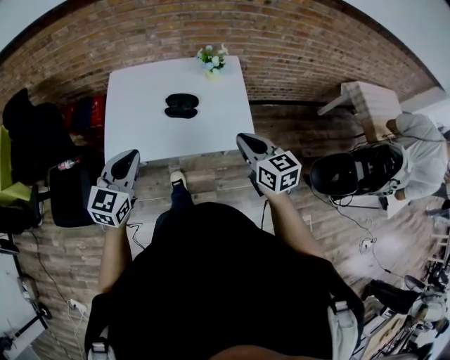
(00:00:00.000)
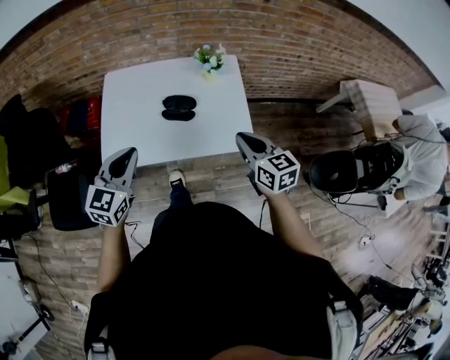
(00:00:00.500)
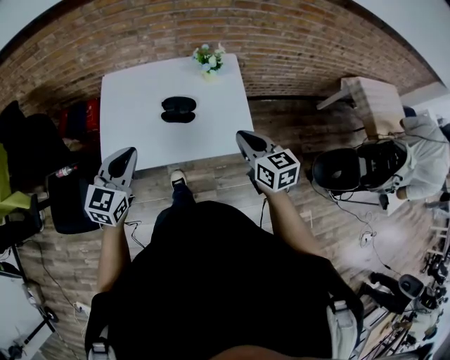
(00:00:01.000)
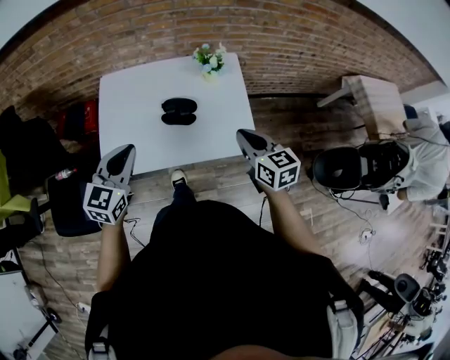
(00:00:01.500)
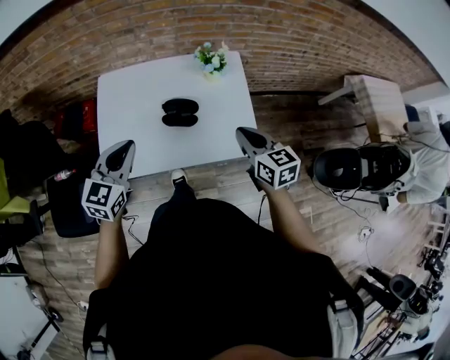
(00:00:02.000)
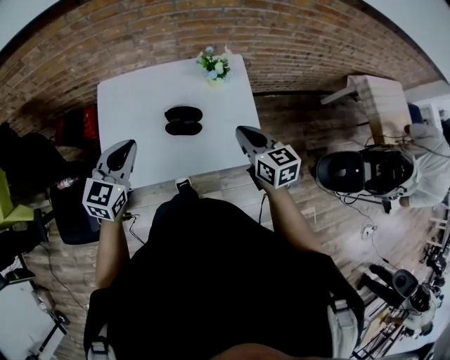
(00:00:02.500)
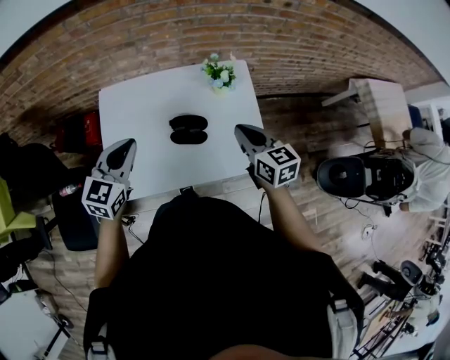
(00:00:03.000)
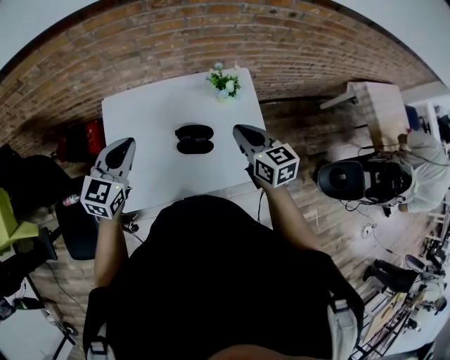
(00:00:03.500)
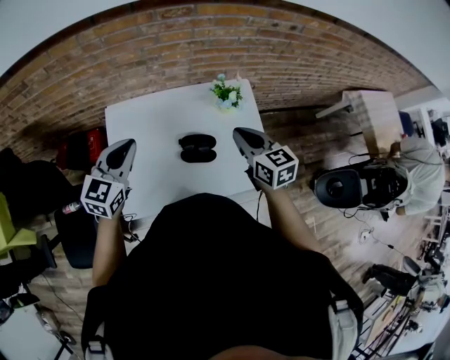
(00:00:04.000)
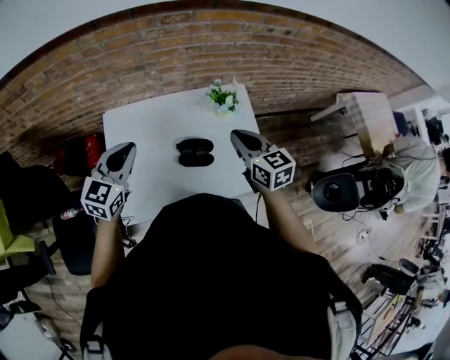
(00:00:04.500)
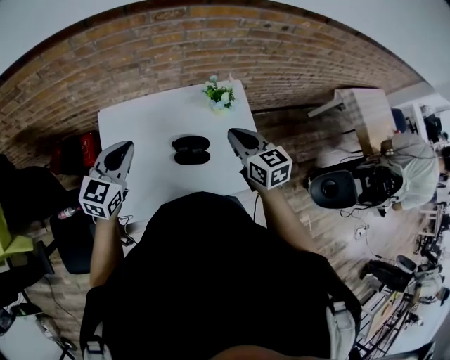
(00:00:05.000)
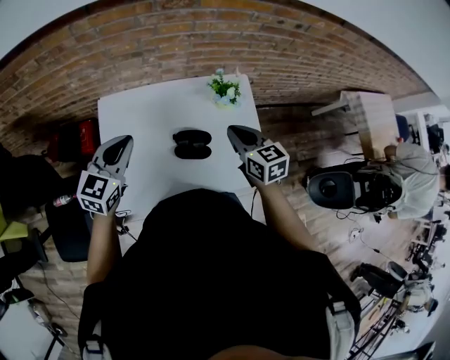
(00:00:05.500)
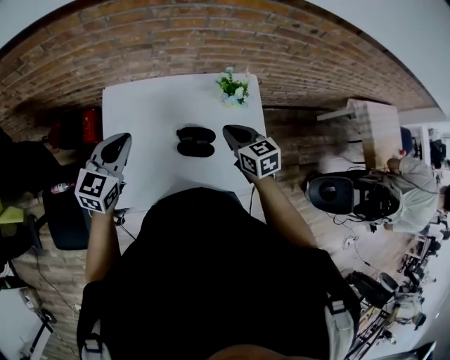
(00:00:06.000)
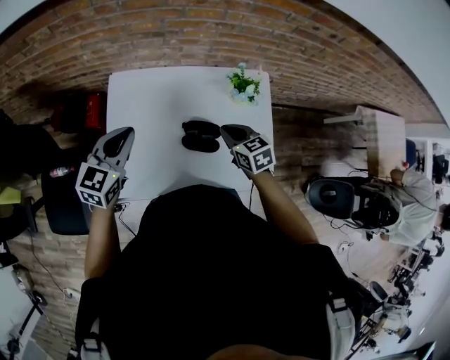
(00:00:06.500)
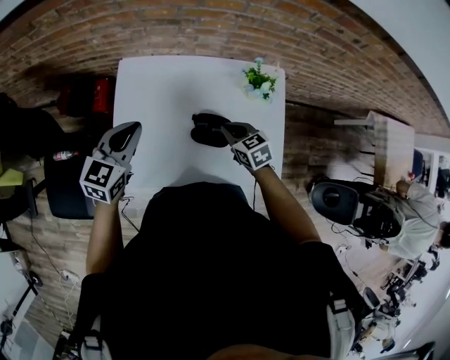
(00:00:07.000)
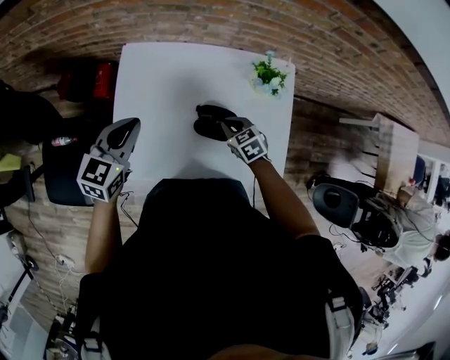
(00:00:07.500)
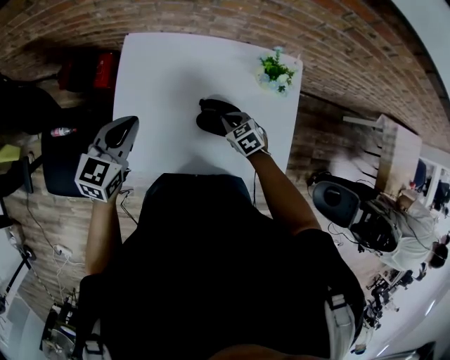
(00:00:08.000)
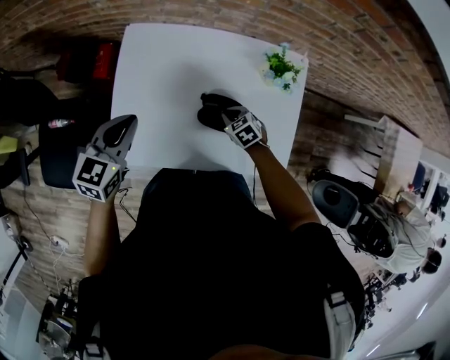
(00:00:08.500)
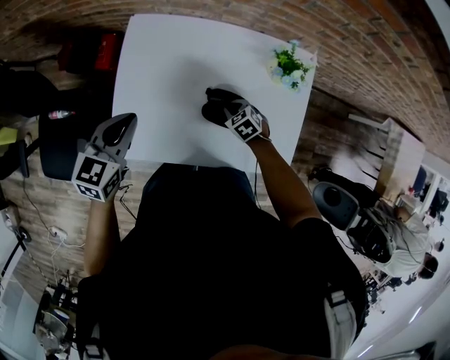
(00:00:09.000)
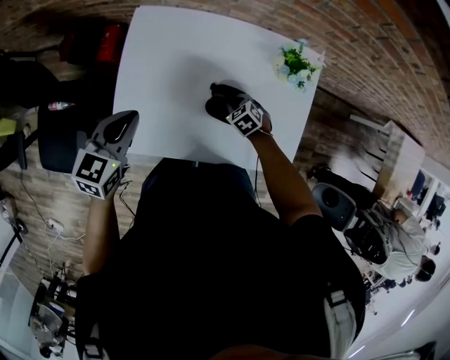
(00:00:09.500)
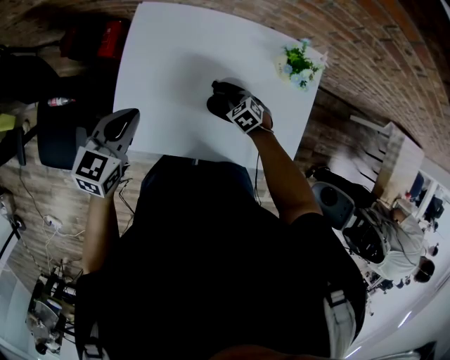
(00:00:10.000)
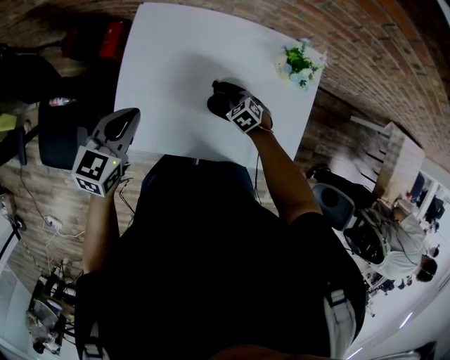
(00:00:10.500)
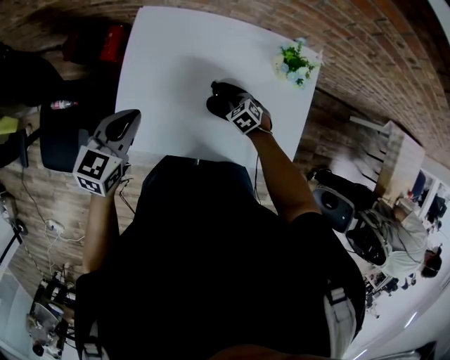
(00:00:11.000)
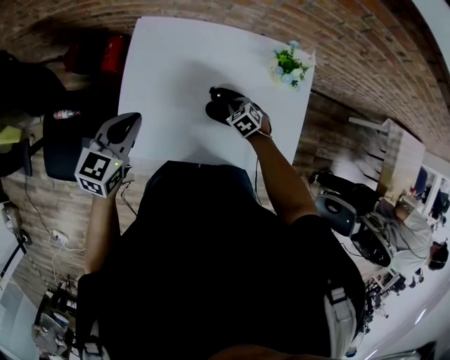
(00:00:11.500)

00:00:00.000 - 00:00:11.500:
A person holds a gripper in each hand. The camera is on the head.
00:00:00.000 - 00:00:02.000: The two grippers go roughly 10 cm forward.
00:00:02.000 - 00:00:04.000: Both grippers travel together forward and to the left, some 20 cm.
00:00:04.000 - 00:00:06.000: The right gripper goes some 10 cm downward.
00:00:06.000 - 00:00:07.500: The right gripper goes some 20 cm downward, and swivels some 30 degrees, while the left gripper travels downward by approximately 5 cm.
00:00:07.500 - 00:00:09.500: The right gripper heads downward, covering some 15 cm, and changes its angle by roughly 20 degrees, while the left gripper goes approximately 5 cm downward.
00:00:09.500 - 00:00:11.500: The grippers make only small movements.

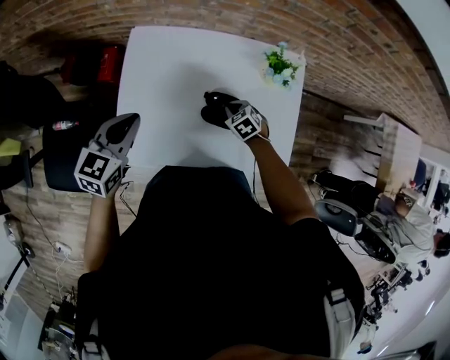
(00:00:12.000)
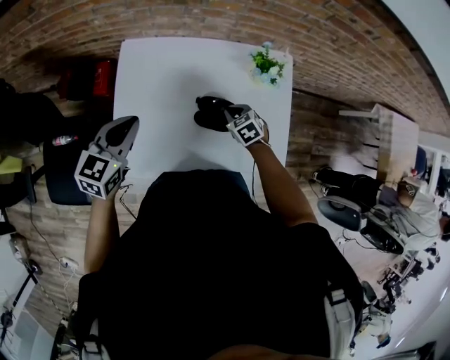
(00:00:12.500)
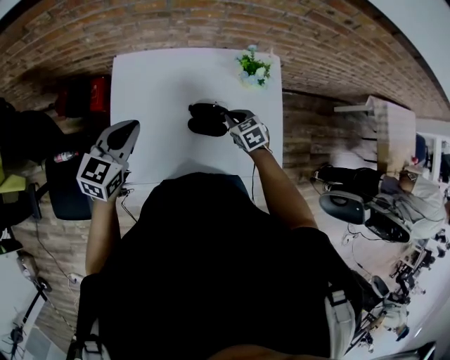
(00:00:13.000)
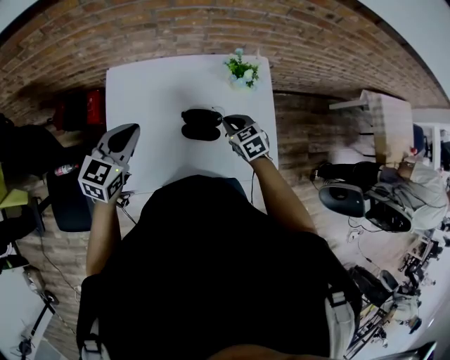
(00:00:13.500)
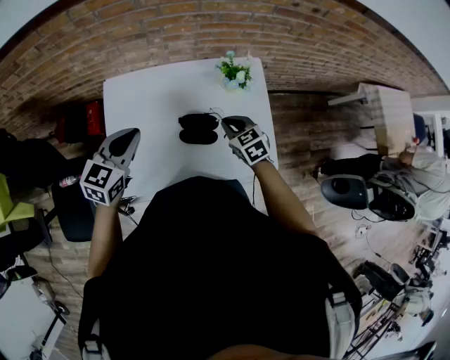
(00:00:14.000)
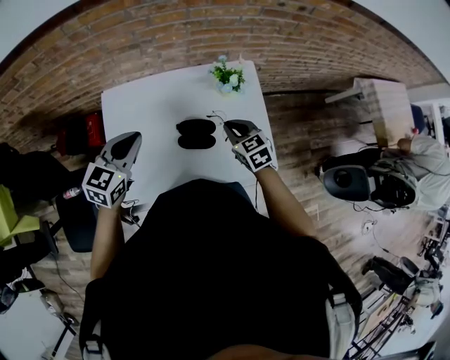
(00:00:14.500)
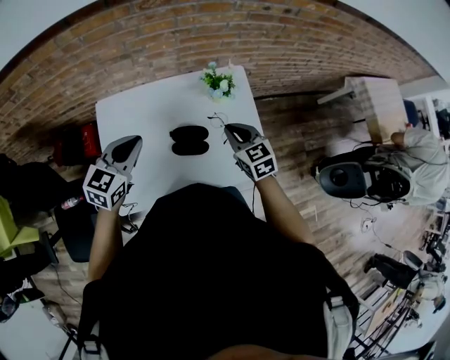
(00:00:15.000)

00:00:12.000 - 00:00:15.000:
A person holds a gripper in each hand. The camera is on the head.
00:00:12.000 - 00:00:13.500: The left gripper heads to the right, covering approximately 5 cm, while the right gripper moves upward, some 15 cm, and swivels roughly 20 degrees.
00:00:13.500 - 00:00:15.000: The left gripper travels to the right by approximately 5 cm. The right gripper travels upward by some 10 cm.

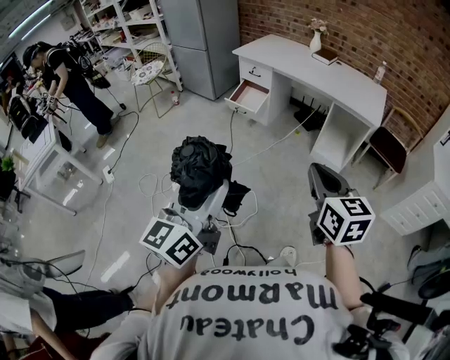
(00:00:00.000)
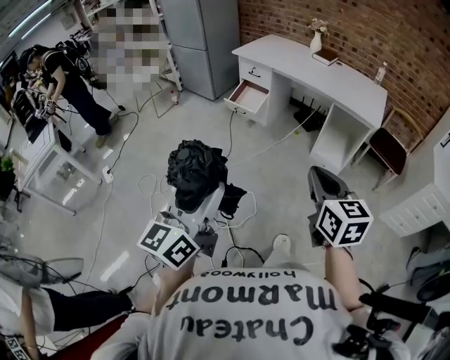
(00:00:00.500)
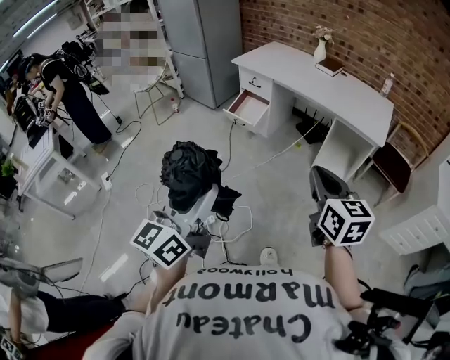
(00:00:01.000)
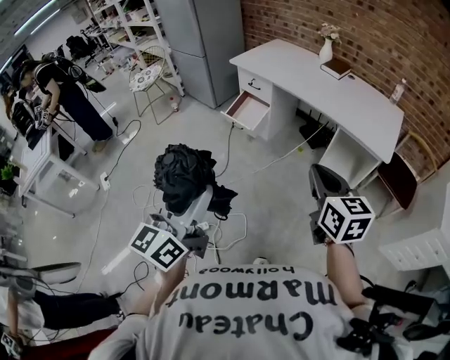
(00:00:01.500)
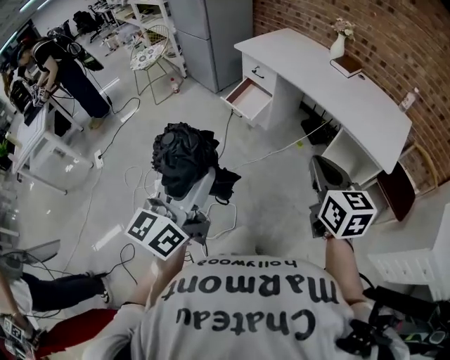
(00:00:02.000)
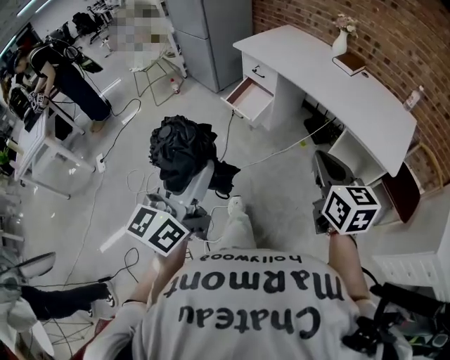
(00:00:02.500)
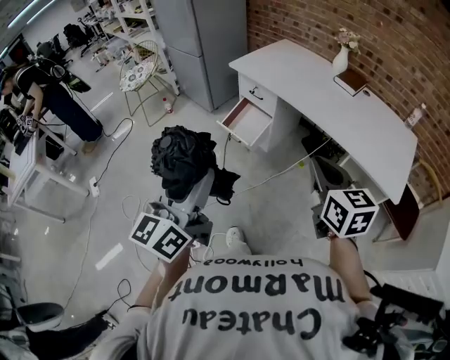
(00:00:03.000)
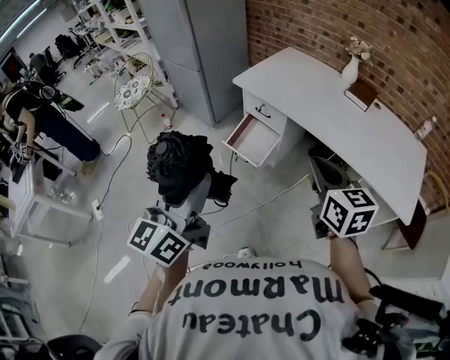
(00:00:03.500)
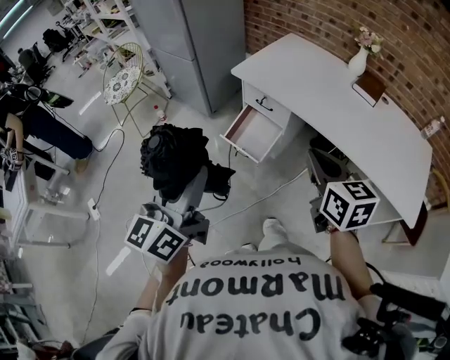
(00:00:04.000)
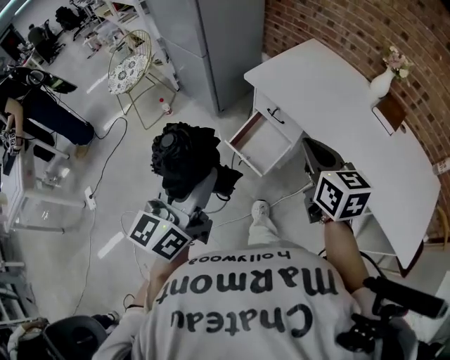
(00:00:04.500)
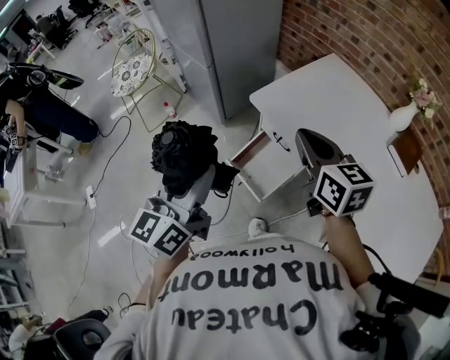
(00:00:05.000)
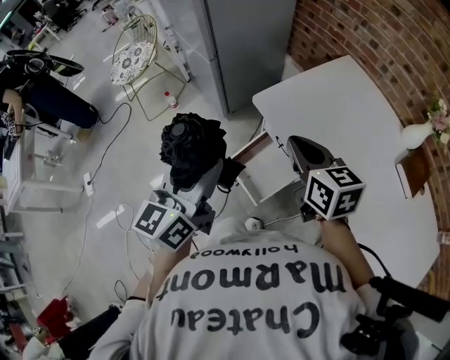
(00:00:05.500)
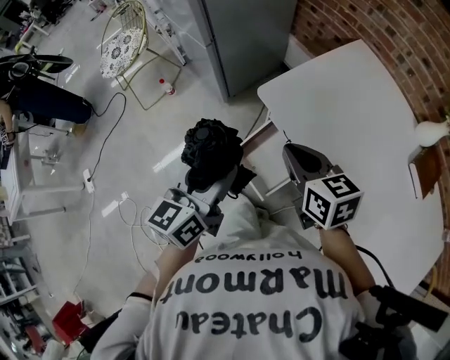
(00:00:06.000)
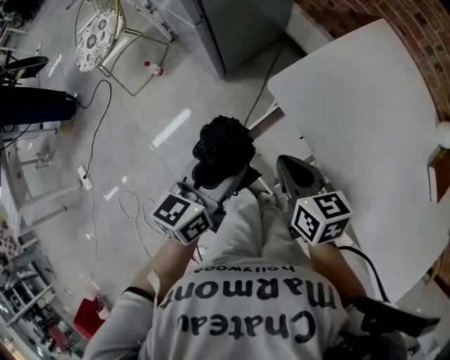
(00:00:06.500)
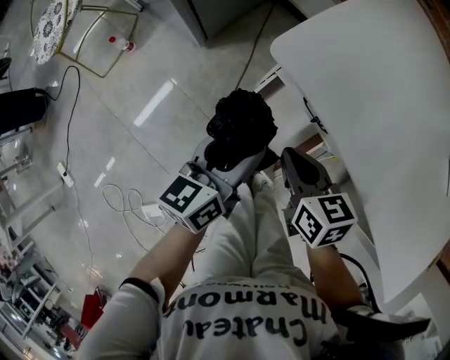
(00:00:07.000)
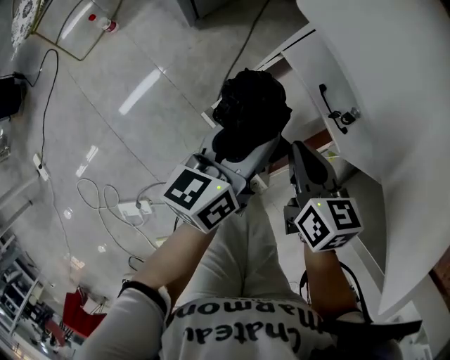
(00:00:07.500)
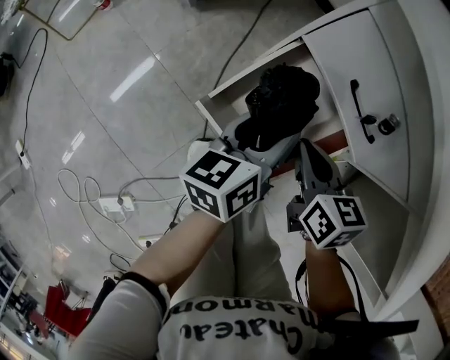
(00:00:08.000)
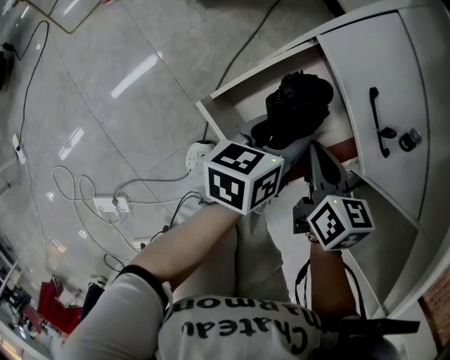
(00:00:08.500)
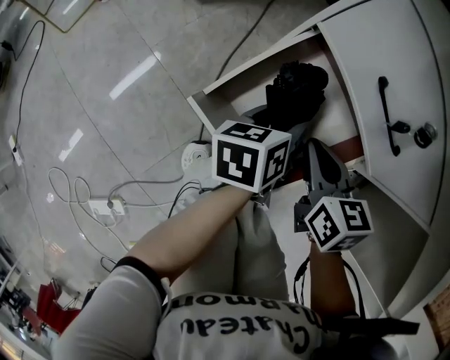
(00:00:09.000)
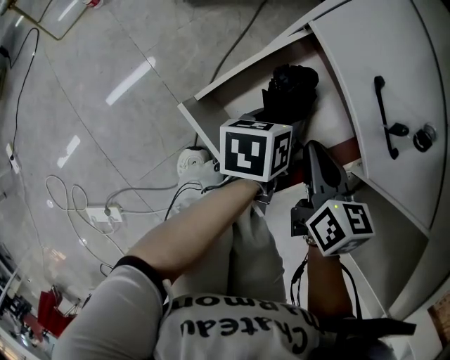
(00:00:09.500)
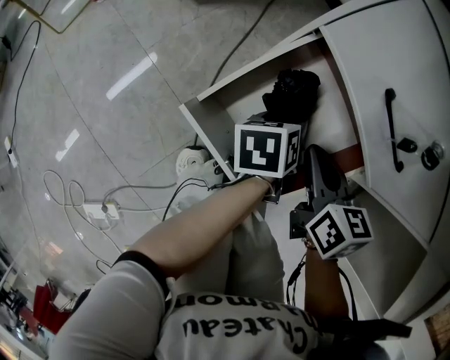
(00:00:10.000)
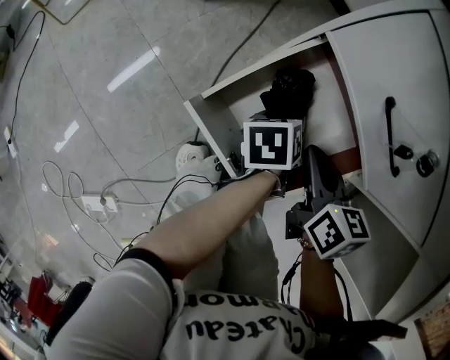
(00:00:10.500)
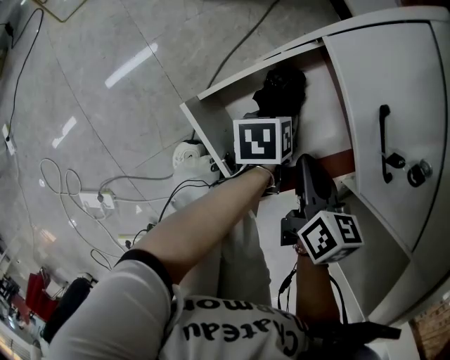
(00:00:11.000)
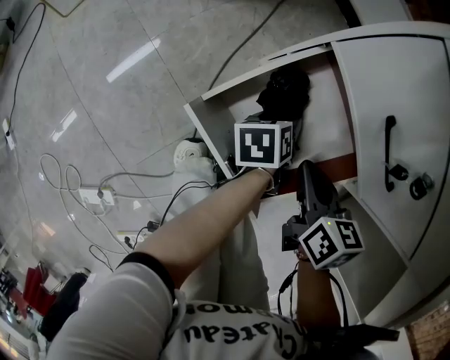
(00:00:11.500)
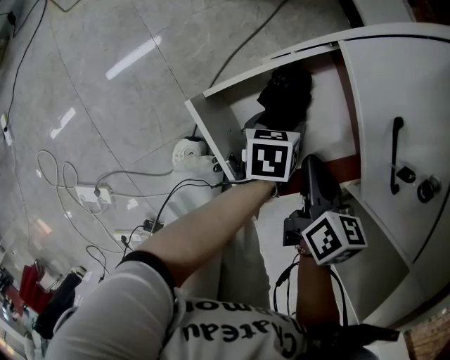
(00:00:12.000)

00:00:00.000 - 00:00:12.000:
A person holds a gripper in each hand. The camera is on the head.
00:00:00.000 - 00:00:02.000: Both grippers travel together forward and to the right, some 30 cm.
00:00:02.000 - 00:00:04.000: The pair of grippers is taken forward, about 40 cm.
00:00:04.000 - 00:00:06.000: The left gripper heads forward and downward, covering some 40 cm, while the right gripper is displaced forward by approximately 40 cm, and rotates roughly 30 degrees.
00:00:06.000 - 00:00:08.000: The grippers both shift downward by roughly 40 cm. The right gripper rotates about 20 degrees; the left gripper rotates about 30 degrees.
00:00:08.000 - 00:00:10.000: The right gripper is displaced downward by some 5 cm. Meanwhile the left gripper heads downward, covering approximately 15 cm, and swivels approximately 30 degrees.
00:00:10.000 - 00:00:12.000: The grippers move only a little.
